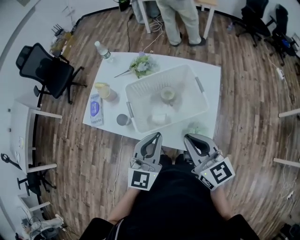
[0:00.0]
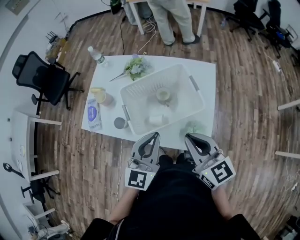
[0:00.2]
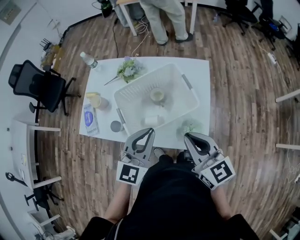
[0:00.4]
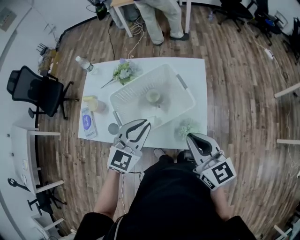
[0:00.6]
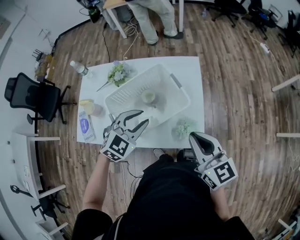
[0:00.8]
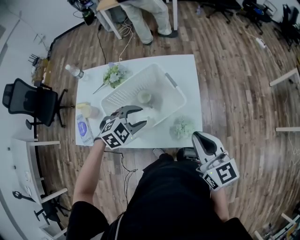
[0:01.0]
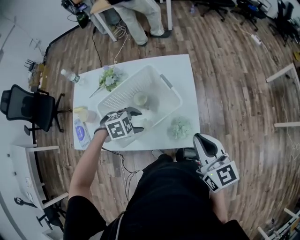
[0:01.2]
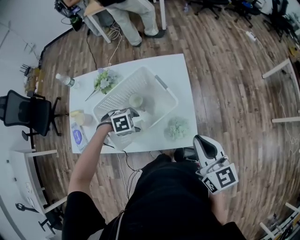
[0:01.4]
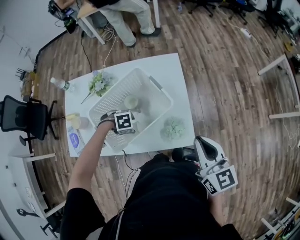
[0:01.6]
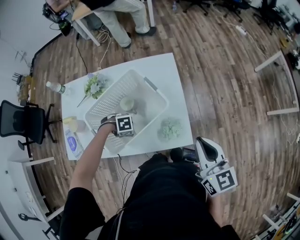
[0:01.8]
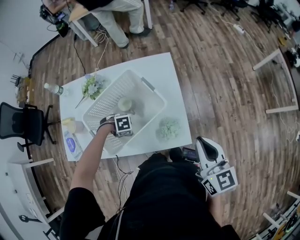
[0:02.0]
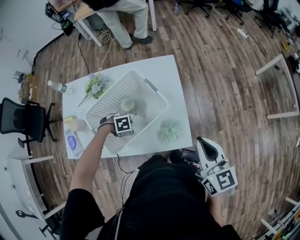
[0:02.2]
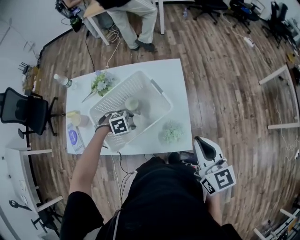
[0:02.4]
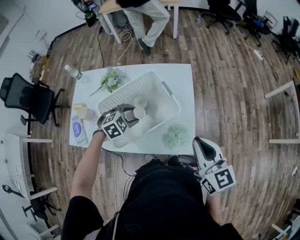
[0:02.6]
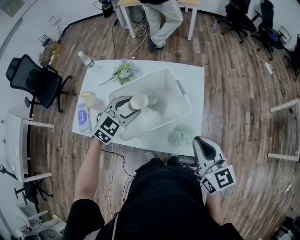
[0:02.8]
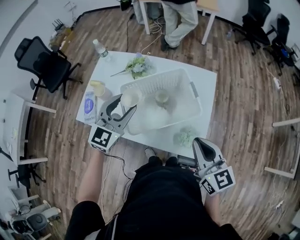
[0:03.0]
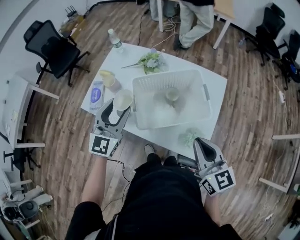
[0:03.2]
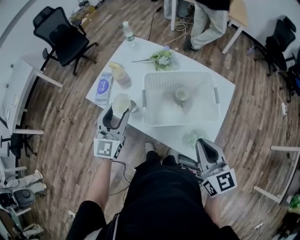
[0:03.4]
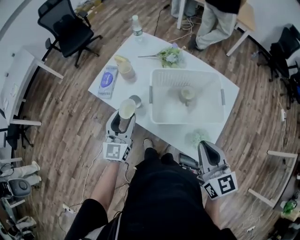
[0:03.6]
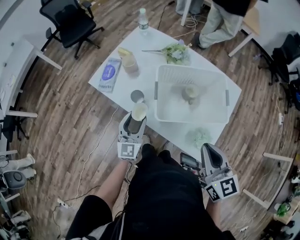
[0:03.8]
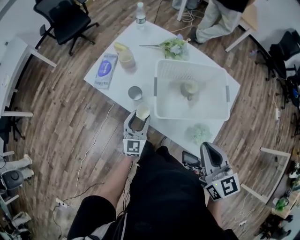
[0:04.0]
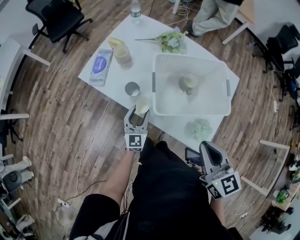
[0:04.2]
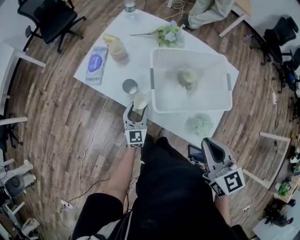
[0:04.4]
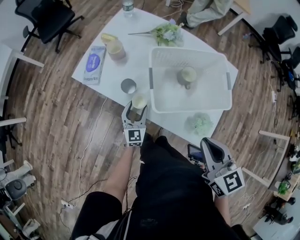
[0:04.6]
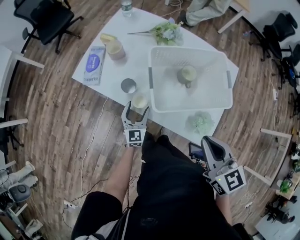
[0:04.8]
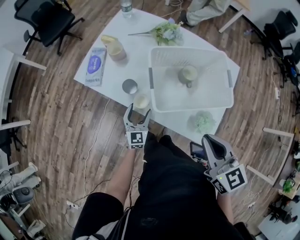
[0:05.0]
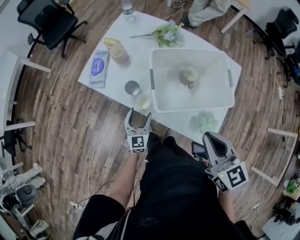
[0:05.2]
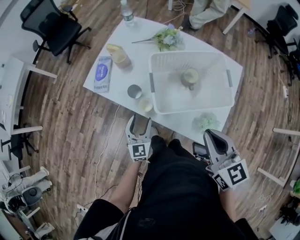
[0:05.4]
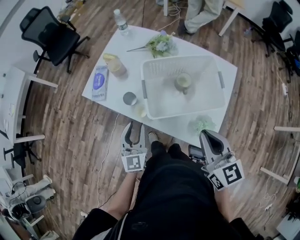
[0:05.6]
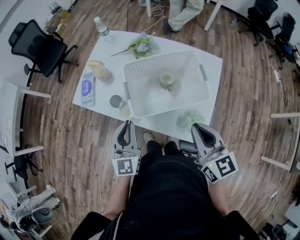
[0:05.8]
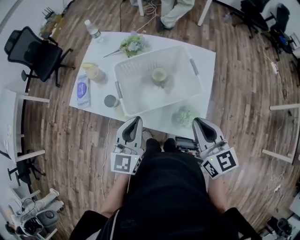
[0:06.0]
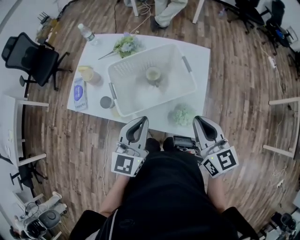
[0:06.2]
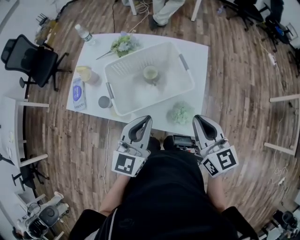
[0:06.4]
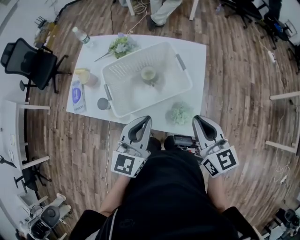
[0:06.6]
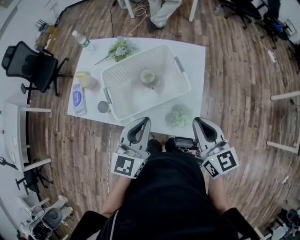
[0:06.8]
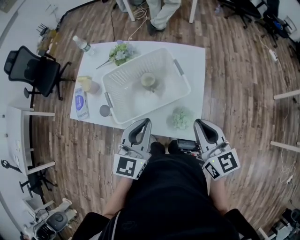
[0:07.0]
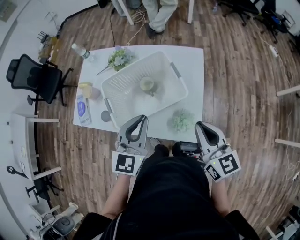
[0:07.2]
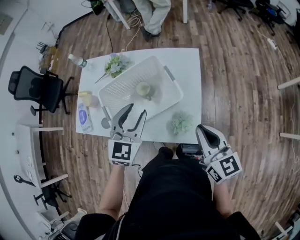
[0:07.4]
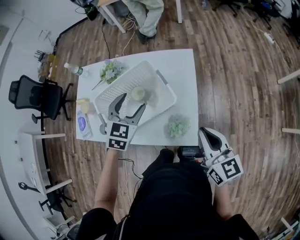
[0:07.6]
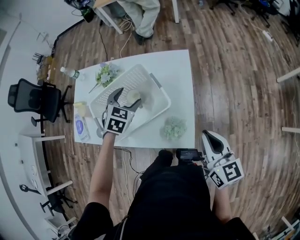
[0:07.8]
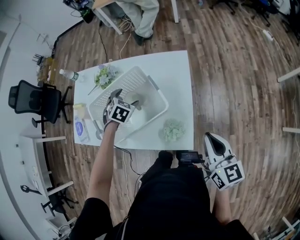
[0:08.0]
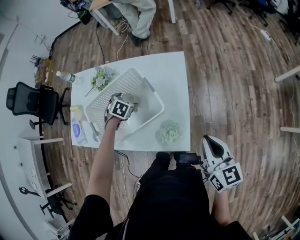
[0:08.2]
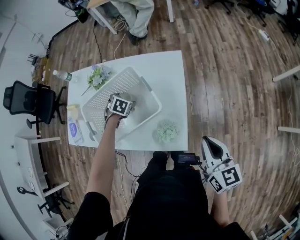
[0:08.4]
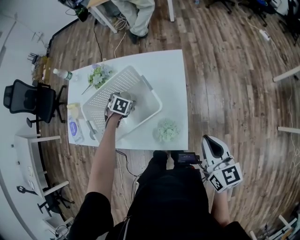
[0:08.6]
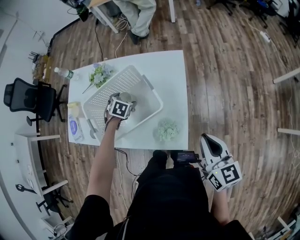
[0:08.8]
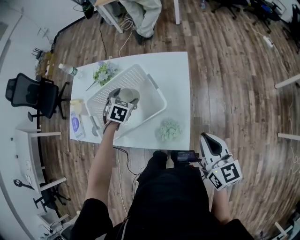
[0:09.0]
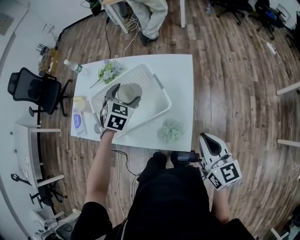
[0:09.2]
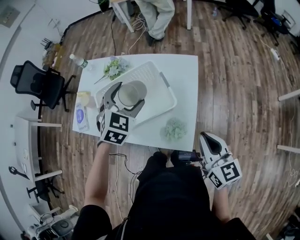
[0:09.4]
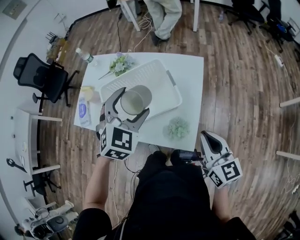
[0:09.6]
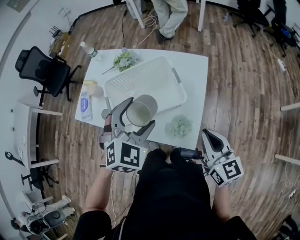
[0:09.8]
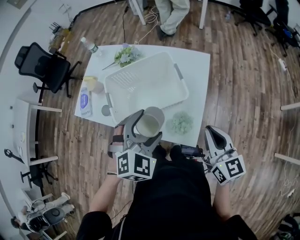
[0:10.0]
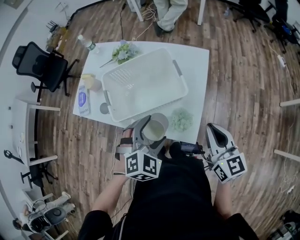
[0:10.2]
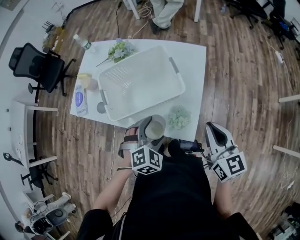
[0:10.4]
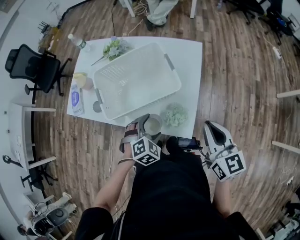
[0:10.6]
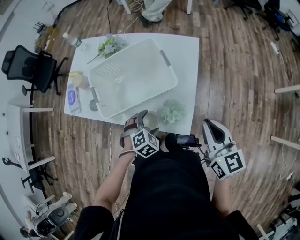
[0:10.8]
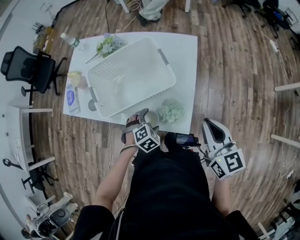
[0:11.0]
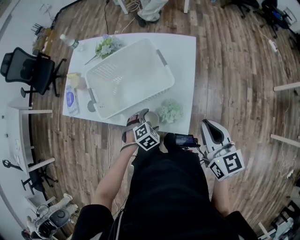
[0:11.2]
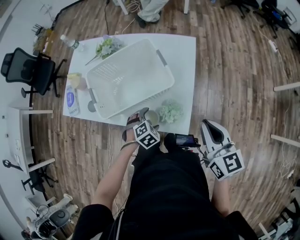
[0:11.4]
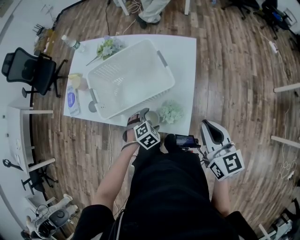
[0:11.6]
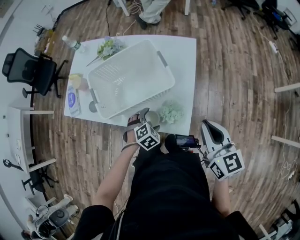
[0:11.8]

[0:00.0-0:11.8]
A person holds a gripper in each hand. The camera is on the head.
0:00.0 to 0:01.4: The right gripper changes place by some 15 cm, and swivels roughly 30 degrees, while the left gripper shifts some 20 cm downward, angles its fingers downward, by about 70 degrees, and opens up.
0:01.4 to 0:03.0: The right gripper shifts by roughly 5 cm, and rotates about 20 degrees. Meanwhile the left gripper shifts approximately 25 cm upward, and points its fingers about 60 degrees further upward.
0:03.0 to 0:04.4: The left gripper travels downward and to the left by some 30 cm, and rotates about 40 degrees. Meanwhile the right gripper heads to the left, covering roughly 10 cm, and swivels about 20 degrees.
0:04.4 to 0:06.0: The right gripper moves to the right, approximately 10 cm. Meanwhile the left gripper heads upward and to the right, covering approximately 25 cm, swivels some 20 degrees, and closes its fingers.
0:06.0 to 0:07.4: The right gripper goes approximately 10 cm to the right. Meanwhile the left gripper travels to the right and forward by approximately 15 cm, swivels about 30 degrees, and opens up.
0:07.4 to 0:08.8: The left gripper is displaced downward and forward by roughly 25 cm, tips its fingers downward by about 40 degrees, and opens, while the right gripper heads to the right, covering roughly 10 cm.
0:08.8 to 0:10.4: The left gripper goes roughly 30 cm backward and upward, and changes its angle by some 30 degrees; the right gripper heads to the left, covering roughly 5 cm.
0:10.4 to 0:11.8: The left gripper is displaced downward by approximately 15 cm.

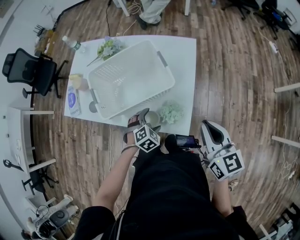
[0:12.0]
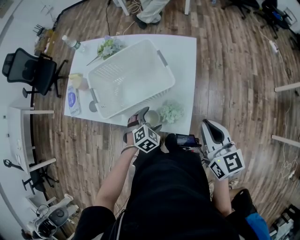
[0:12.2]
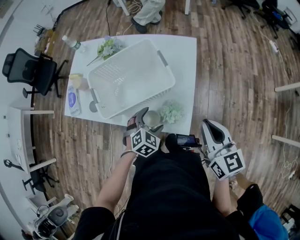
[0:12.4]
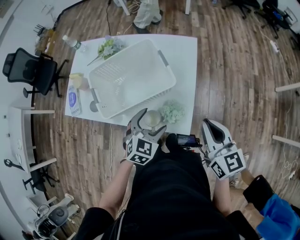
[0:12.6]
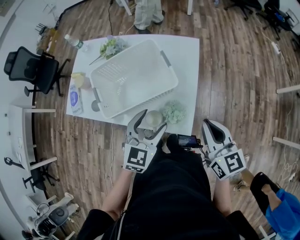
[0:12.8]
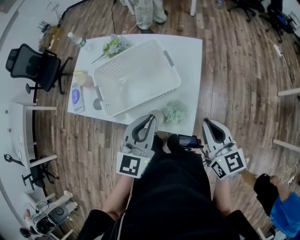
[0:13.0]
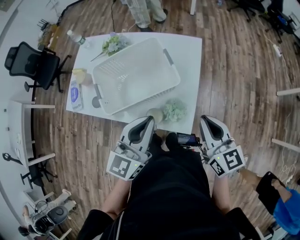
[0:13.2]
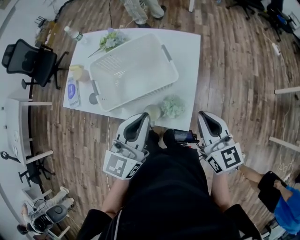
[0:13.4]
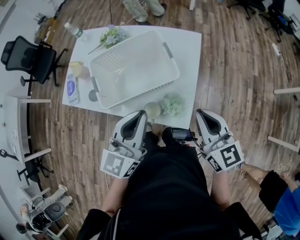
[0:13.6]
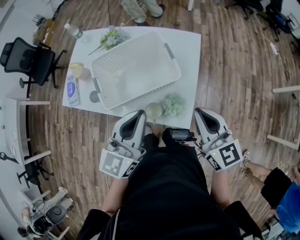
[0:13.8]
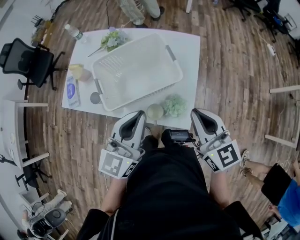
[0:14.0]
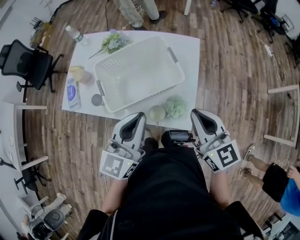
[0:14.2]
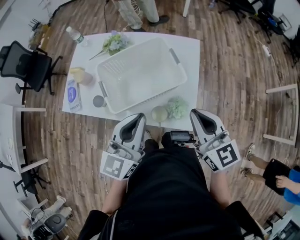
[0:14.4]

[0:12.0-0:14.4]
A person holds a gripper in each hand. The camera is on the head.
0:12.0 to 0:13.2: The left gripper heads upward, covering some 30 cm, tips its fingers upward by roughly 60 degrees, and closes its fingers.
0:13.2 to 0:14.4: The grippers both shift to the left by approximately 10 cm.

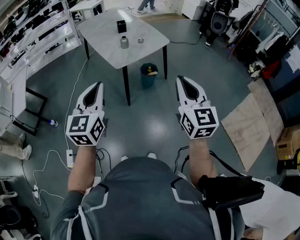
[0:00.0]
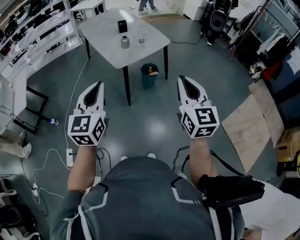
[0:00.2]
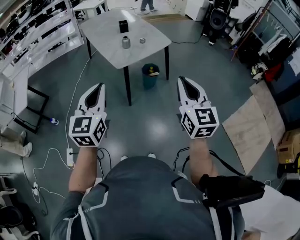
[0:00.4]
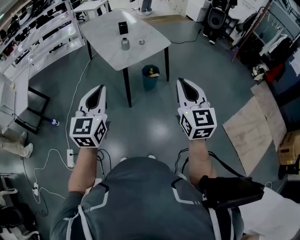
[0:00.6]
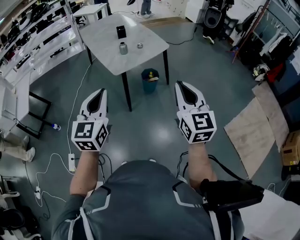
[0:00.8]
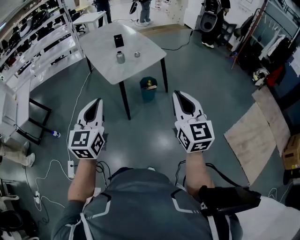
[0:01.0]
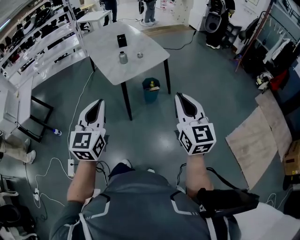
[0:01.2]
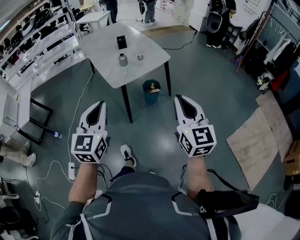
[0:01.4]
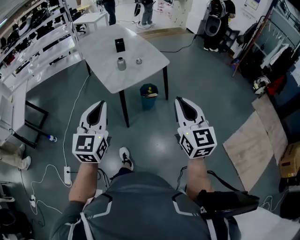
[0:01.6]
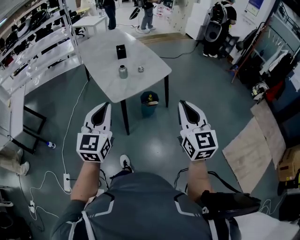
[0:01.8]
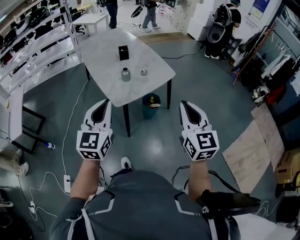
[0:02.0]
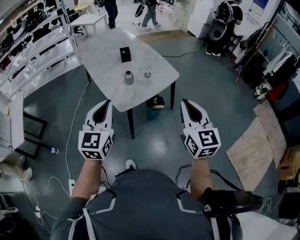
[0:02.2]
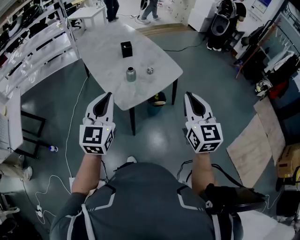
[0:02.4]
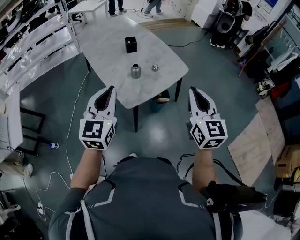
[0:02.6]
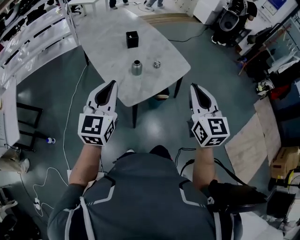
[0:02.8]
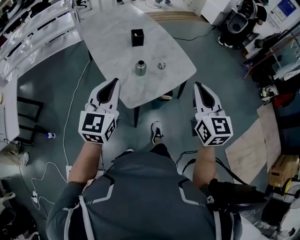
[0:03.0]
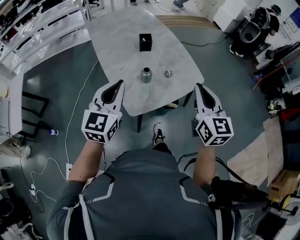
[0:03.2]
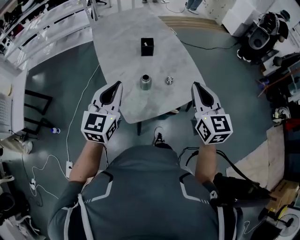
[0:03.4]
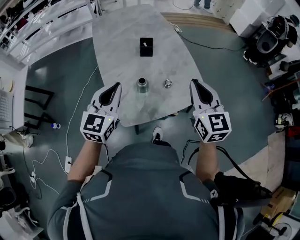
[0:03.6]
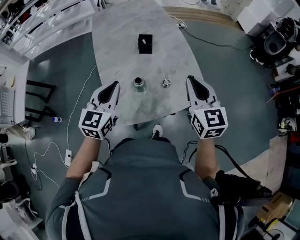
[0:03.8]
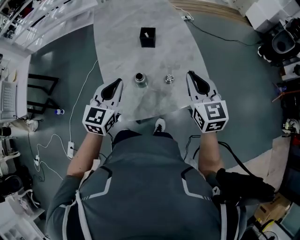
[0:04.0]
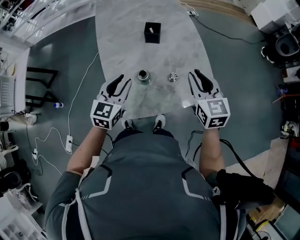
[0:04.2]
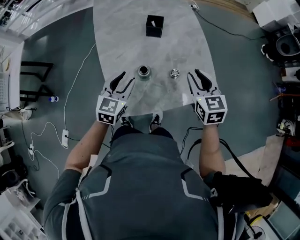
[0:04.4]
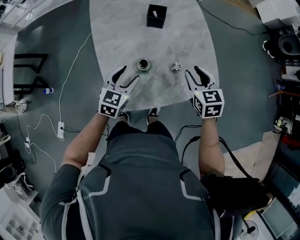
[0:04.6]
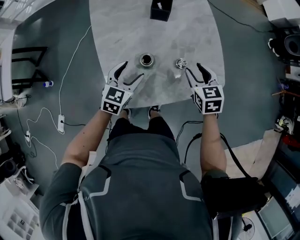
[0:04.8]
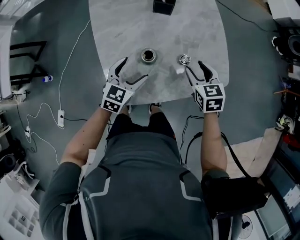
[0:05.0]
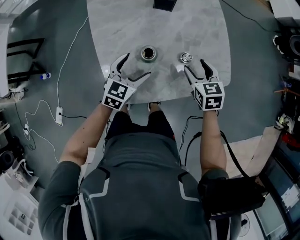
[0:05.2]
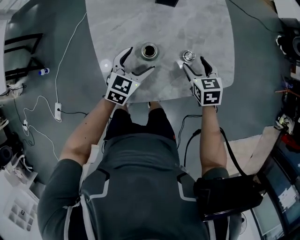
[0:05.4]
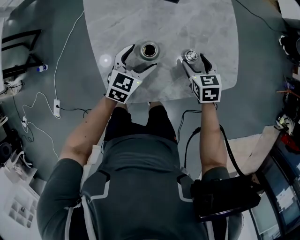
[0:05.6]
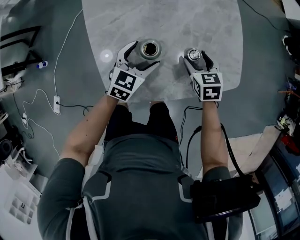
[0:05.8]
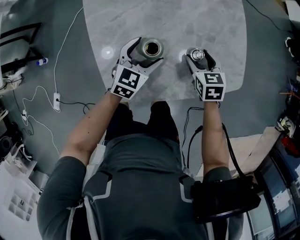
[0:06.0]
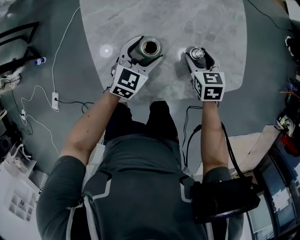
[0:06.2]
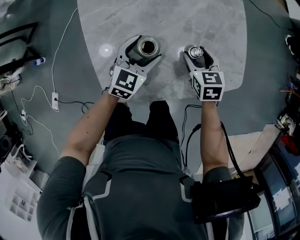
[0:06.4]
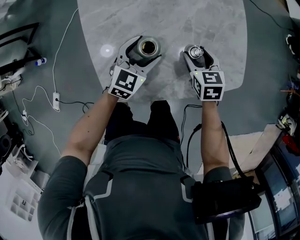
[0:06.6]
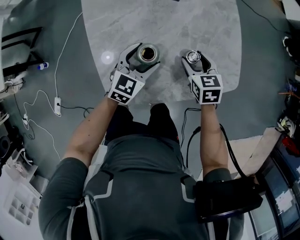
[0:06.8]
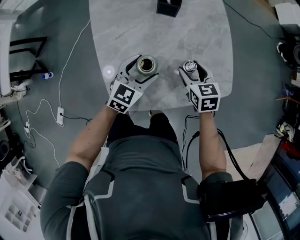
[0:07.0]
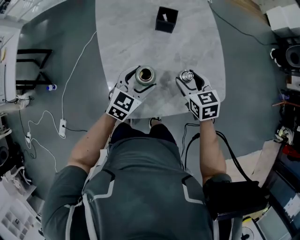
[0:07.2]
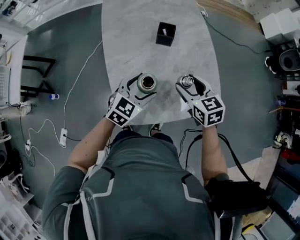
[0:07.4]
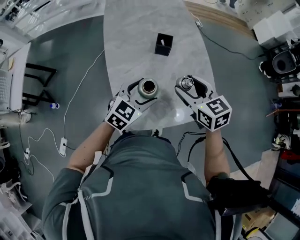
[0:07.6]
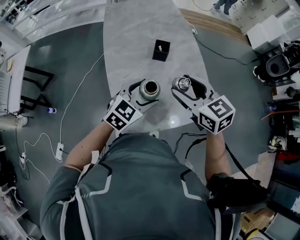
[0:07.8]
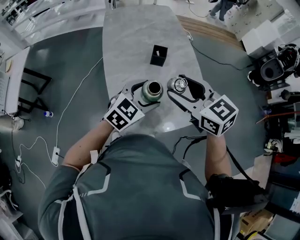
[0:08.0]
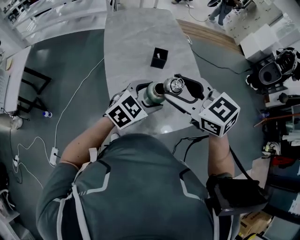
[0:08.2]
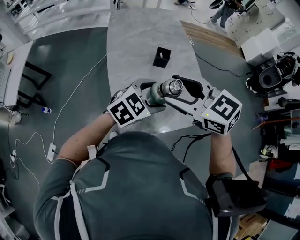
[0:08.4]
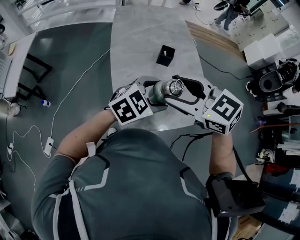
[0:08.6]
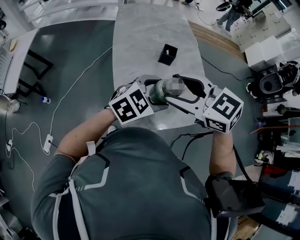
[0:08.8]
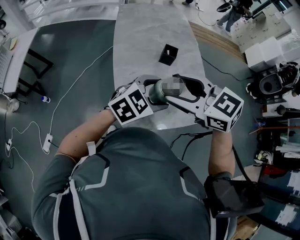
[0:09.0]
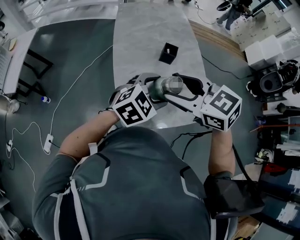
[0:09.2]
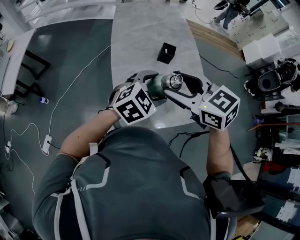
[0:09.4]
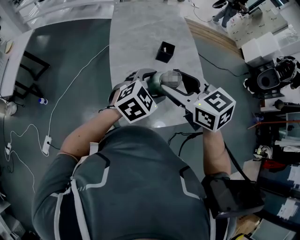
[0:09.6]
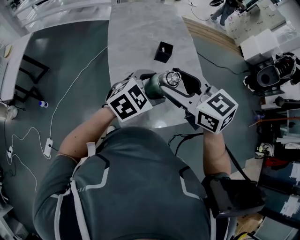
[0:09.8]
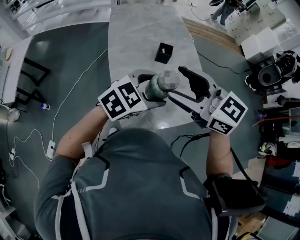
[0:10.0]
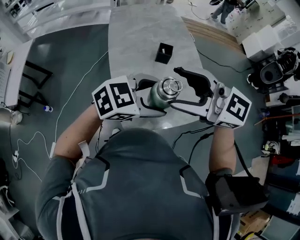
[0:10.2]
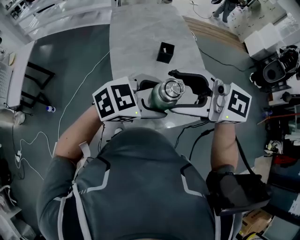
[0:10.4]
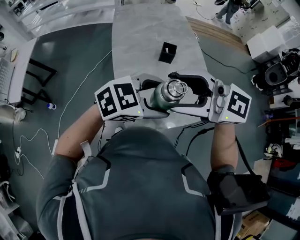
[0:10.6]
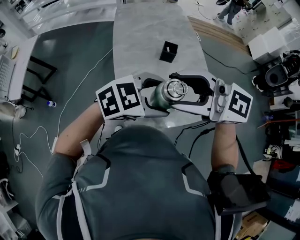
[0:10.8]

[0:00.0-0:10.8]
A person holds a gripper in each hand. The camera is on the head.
0:00.0 to 0:01.6: The grippers both shift forward and to the right by about 10 cm.
0:01.6 to 0:03.0: Both grippers move forward, some 30 cm.
0:03.0 to 0:04.6: The left gripper moves downward and forward, approximately 35 cm, rotates about 30 degrees, and opens. Meanwhile the right gripper travels forward and downward by about 40 cm, changes its angle by some 40 degrees, and opens.
0:04.6 to 0:06.2: The left gripper shifts some 15 cm downward, to the right and forward. The right gripper goes about 20 cm downward, and opens its fingers.
0:06.2 to 0:07.8: The grippers both shift upward by some 30 cm. The right gripper rotates roughly 30 degrees.
0:07.8 to 0:09.2: The right gripper heads to the left, upward and backward, covering about 15 cm, and rotates roughly 20 degrees. The left gripper travels upward by roughly 5 cm.
0:09.2 to 0:10.8: Both grippers move upward, about 5 cm. The right gripper turns by some 40 degrees. The left gripper rotates some 20 degrees.
